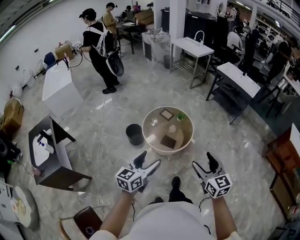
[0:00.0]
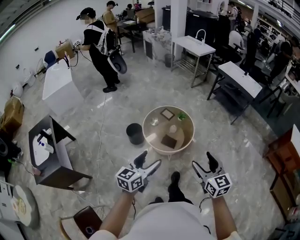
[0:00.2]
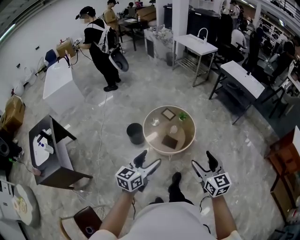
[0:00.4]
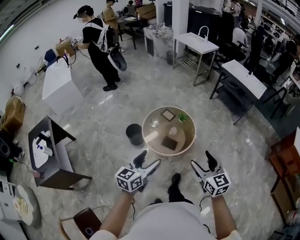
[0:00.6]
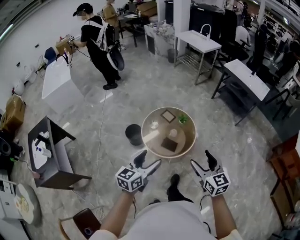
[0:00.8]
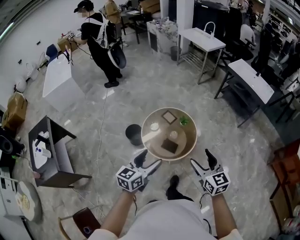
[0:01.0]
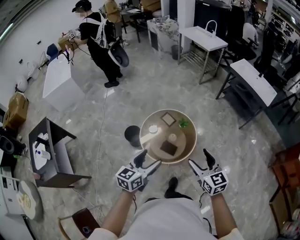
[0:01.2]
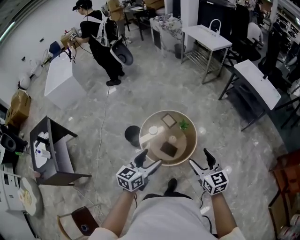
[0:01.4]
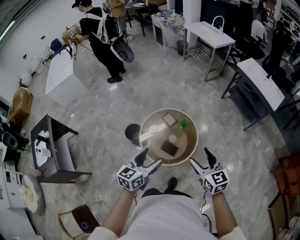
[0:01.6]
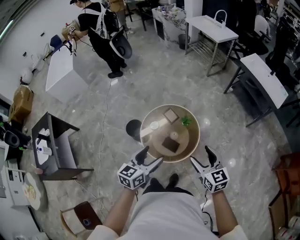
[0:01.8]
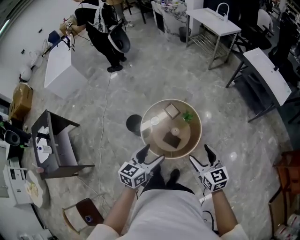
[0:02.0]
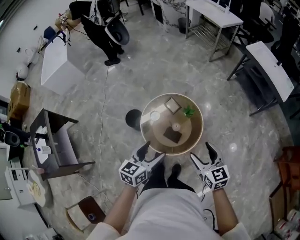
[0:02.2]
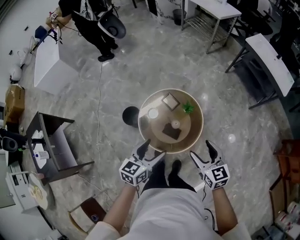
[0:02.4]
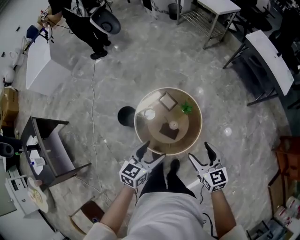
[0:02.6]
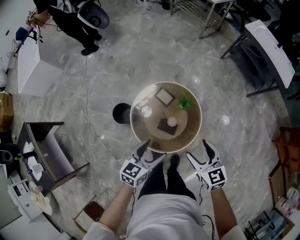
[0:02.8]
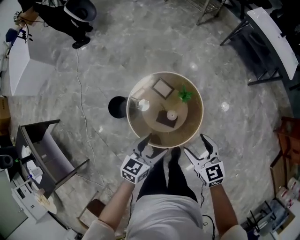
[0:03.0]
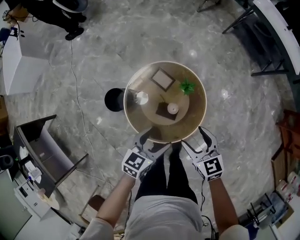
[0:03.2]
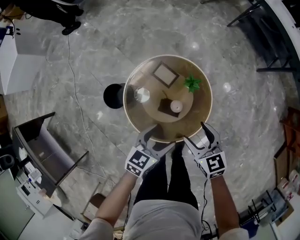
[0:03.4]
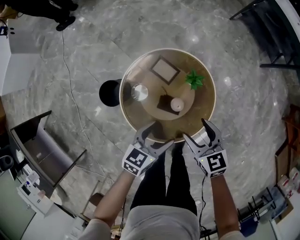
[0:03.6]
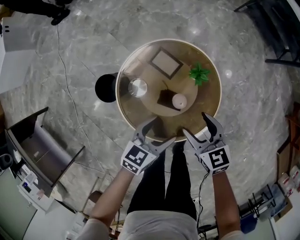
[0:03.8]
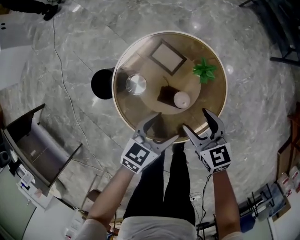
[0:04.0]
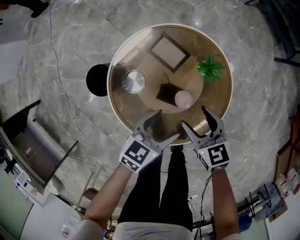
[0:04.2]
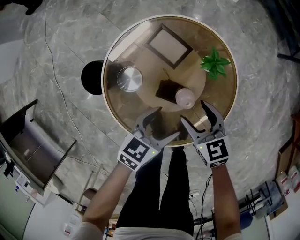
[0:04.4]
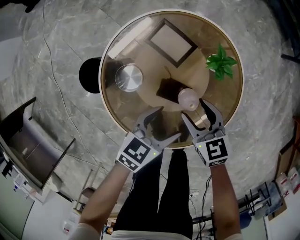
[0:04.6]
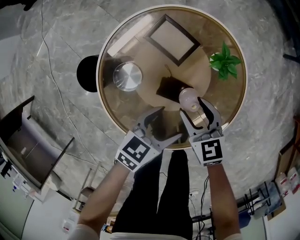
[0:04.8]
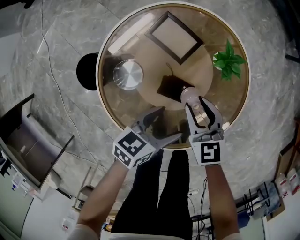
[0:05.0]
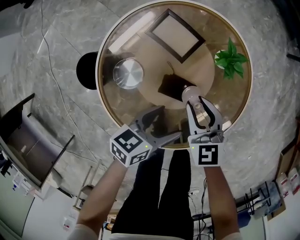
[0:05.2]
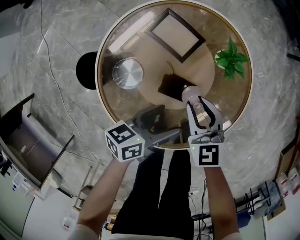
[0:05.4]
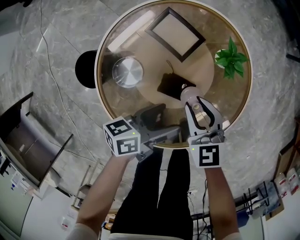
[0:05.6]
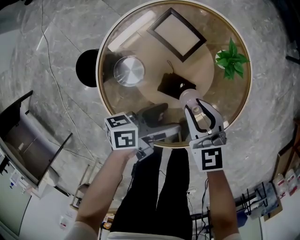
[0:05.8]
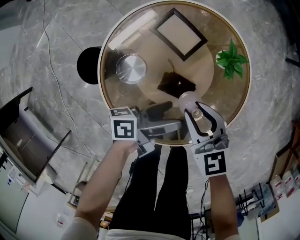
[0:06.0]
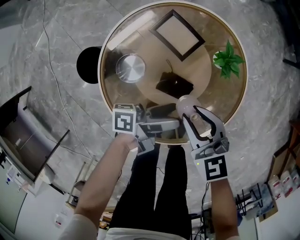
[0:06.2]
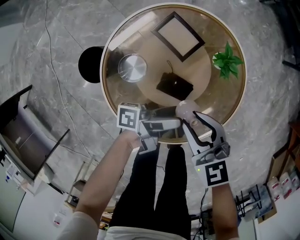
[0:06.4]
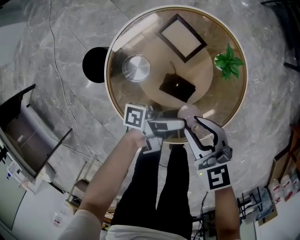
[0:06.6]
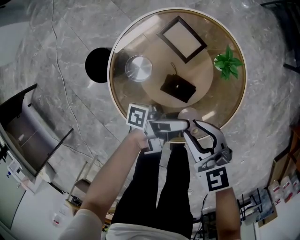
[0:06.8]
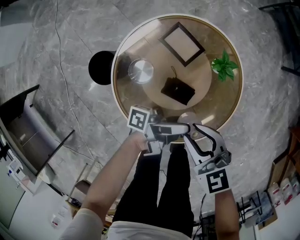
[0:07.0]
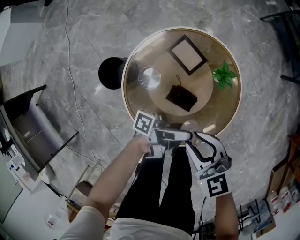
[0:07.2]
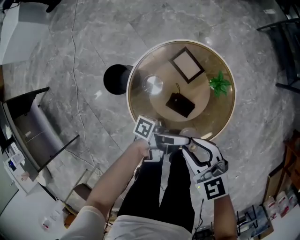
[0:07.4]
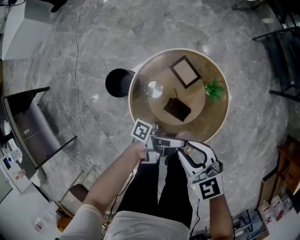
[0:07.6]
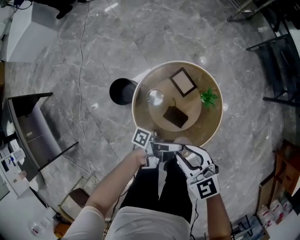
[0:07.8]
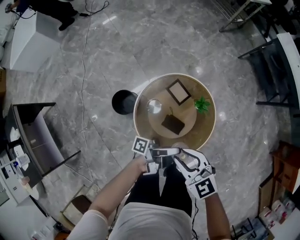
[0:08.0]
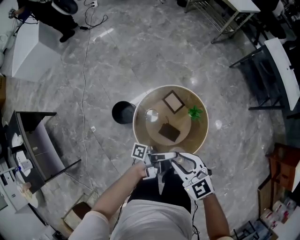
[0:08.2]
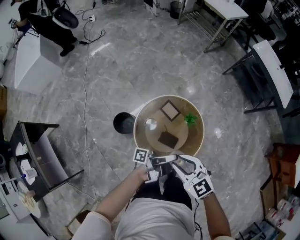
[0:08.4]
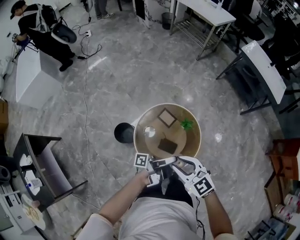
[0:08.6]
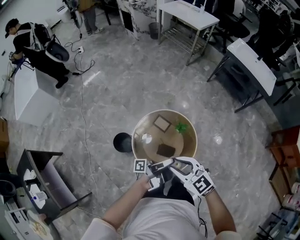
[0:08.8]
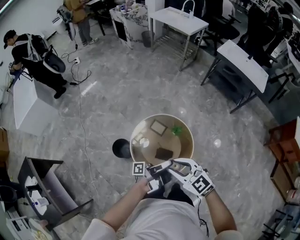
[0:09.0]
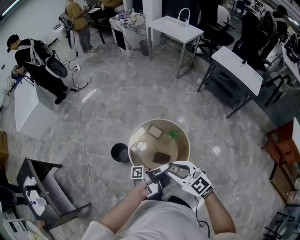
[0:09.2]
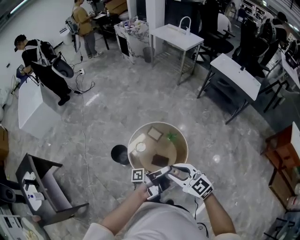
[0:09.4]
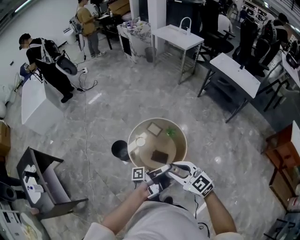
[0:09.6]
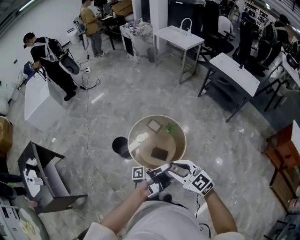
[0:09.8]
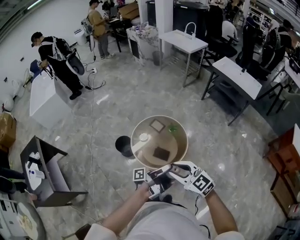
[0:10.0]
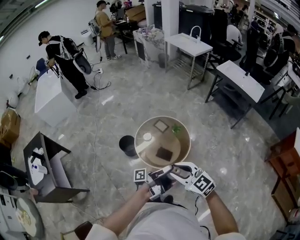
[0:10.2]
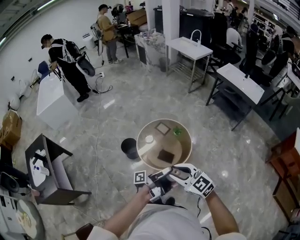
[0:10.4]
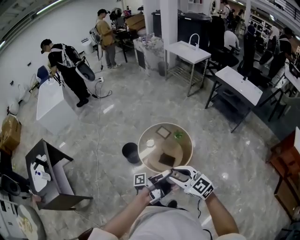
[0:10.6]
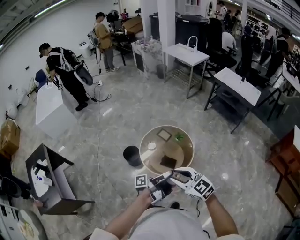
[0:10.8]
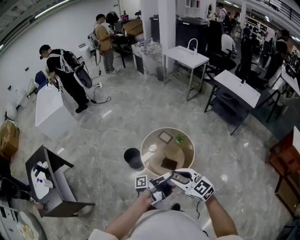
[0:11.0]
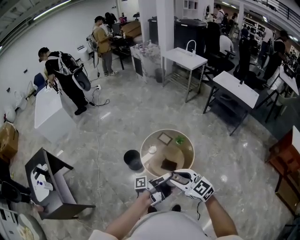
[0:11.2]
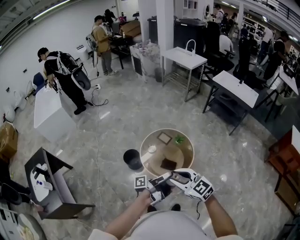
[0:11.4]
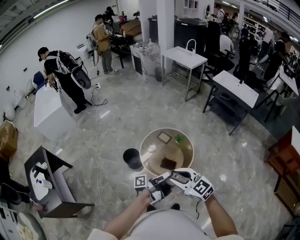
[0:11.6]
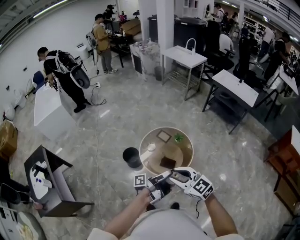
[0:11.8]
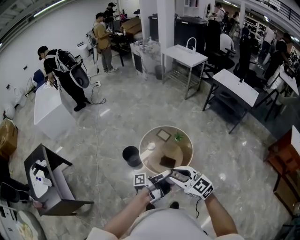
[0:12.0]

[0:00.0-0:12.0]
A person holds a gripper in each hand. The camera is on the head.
0:00.0 to 0:01.6: Both grippers travel together forward, about 30 cm.
0:01.6 to 0:03.0: The grippers both shift downward and forward by some 25 cm. The left gripper swivels some 20 degrees.
0:03.0 to 0:04.4: Both grippers travel together downward, approximately 35 cm.
0:04.4 to 0:06.0: The right gripper closes its fingers; the left gripper rolls counterclockwise, seen from behind, by roughly 50 degrees.
0:06.0 to 0:07.6: The two grippers go approximately 20 cm upward. The left gripper tips its fingers upward by approximately 30 degrees.
0:07.6 to 0:09.0: Both grippers move upward, about 30 cm.
0:09.0 to 0:10.4: Both grippers move backward, roughly 30 cm.
0:10.4 to 0:12.0: Both grippers move to the left, some 5 cm.

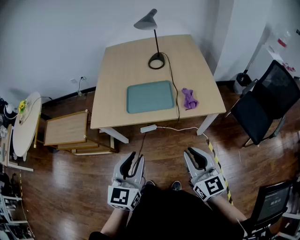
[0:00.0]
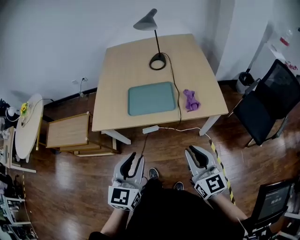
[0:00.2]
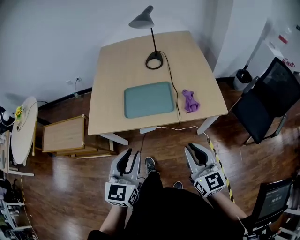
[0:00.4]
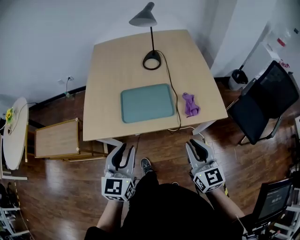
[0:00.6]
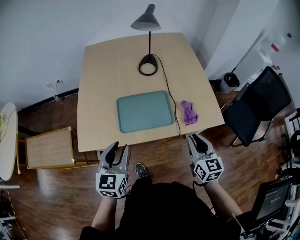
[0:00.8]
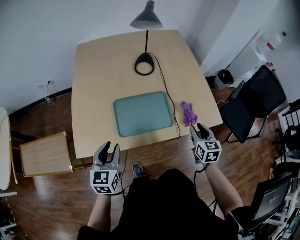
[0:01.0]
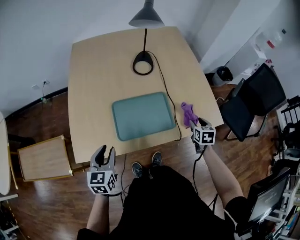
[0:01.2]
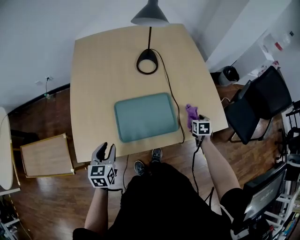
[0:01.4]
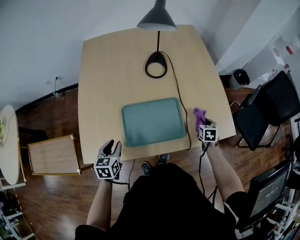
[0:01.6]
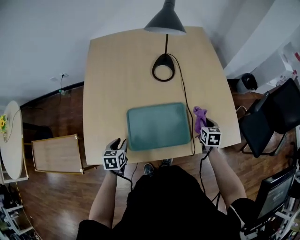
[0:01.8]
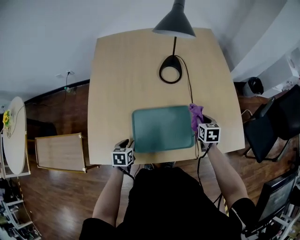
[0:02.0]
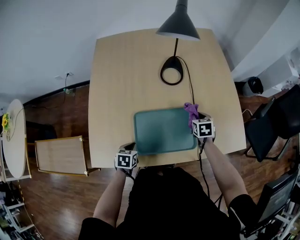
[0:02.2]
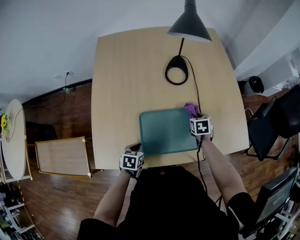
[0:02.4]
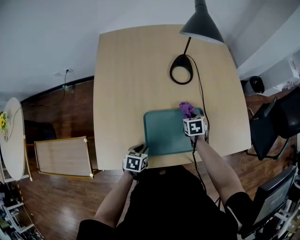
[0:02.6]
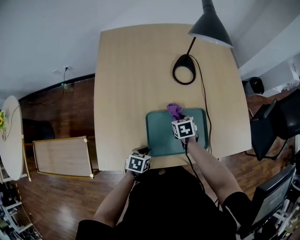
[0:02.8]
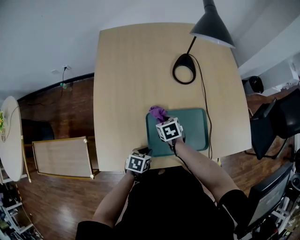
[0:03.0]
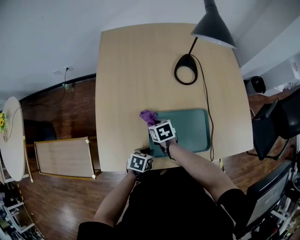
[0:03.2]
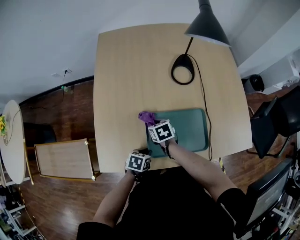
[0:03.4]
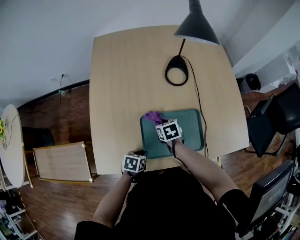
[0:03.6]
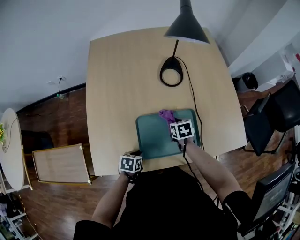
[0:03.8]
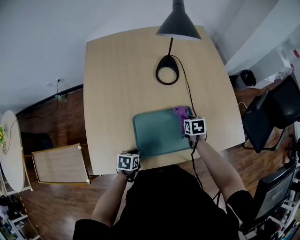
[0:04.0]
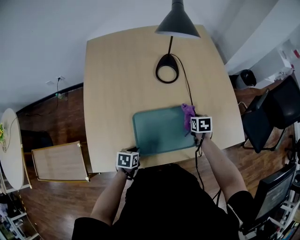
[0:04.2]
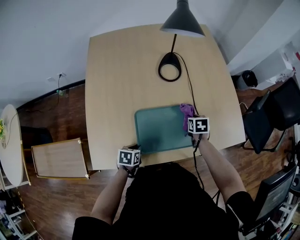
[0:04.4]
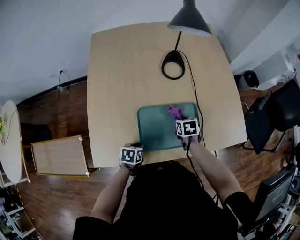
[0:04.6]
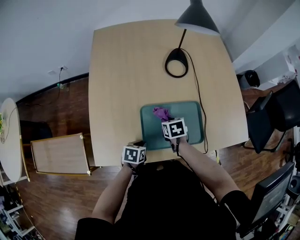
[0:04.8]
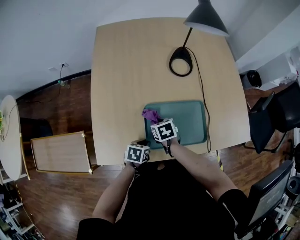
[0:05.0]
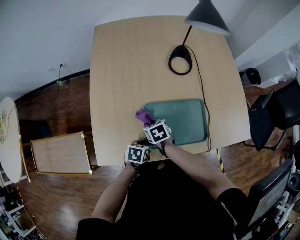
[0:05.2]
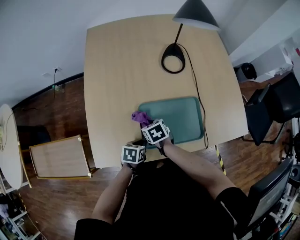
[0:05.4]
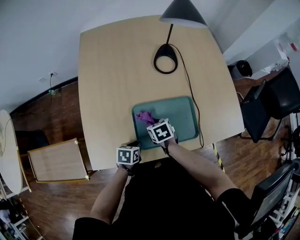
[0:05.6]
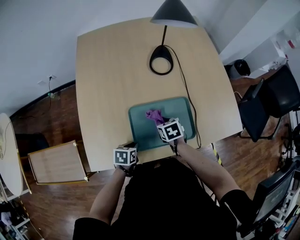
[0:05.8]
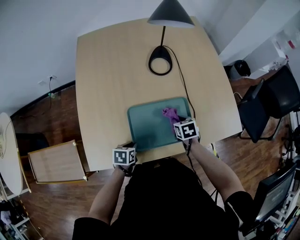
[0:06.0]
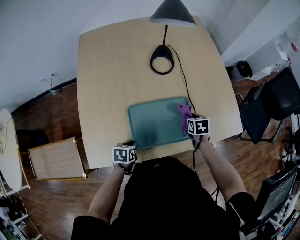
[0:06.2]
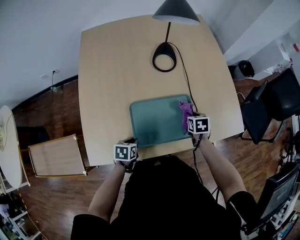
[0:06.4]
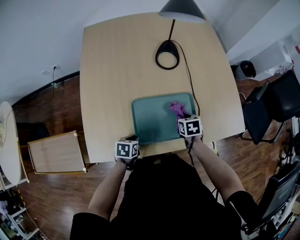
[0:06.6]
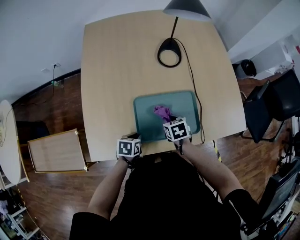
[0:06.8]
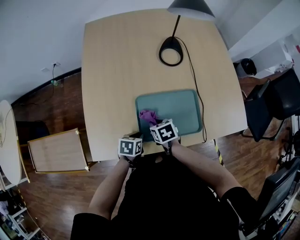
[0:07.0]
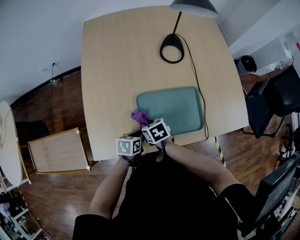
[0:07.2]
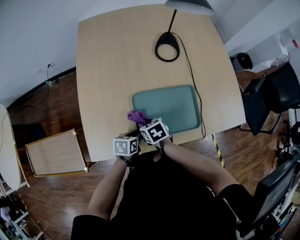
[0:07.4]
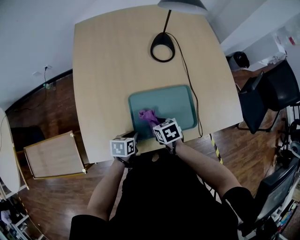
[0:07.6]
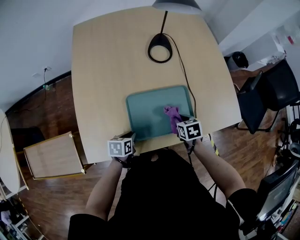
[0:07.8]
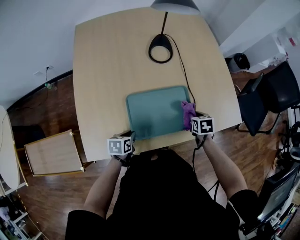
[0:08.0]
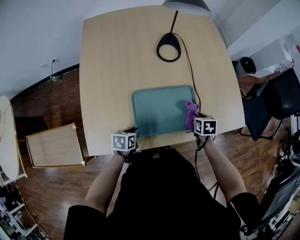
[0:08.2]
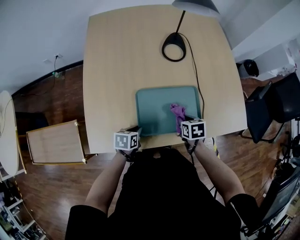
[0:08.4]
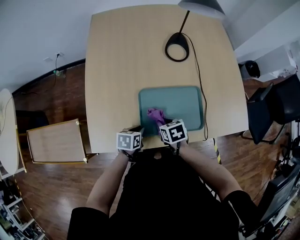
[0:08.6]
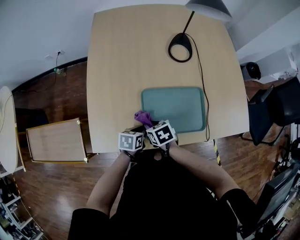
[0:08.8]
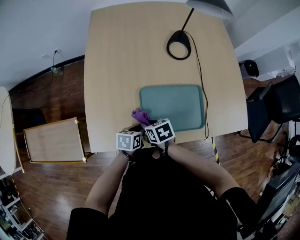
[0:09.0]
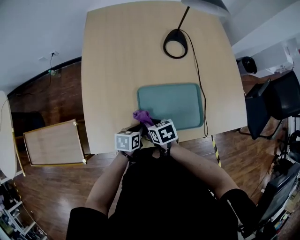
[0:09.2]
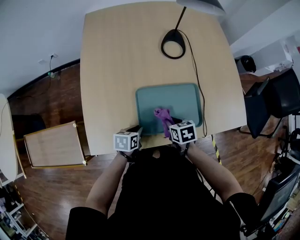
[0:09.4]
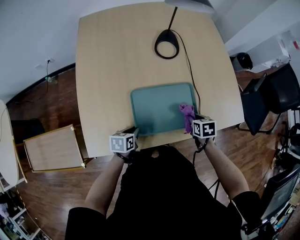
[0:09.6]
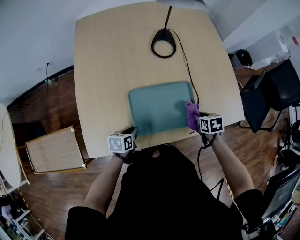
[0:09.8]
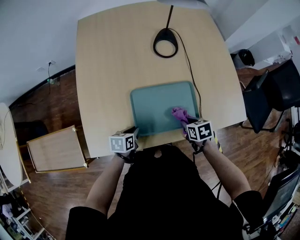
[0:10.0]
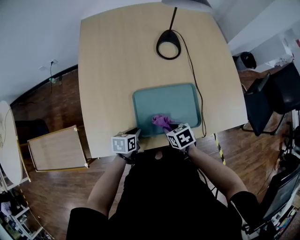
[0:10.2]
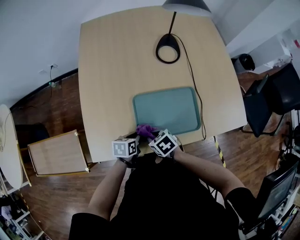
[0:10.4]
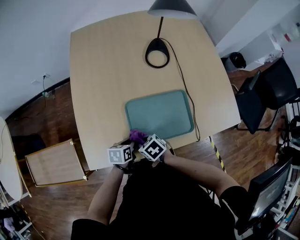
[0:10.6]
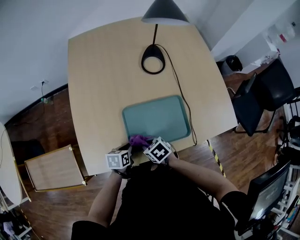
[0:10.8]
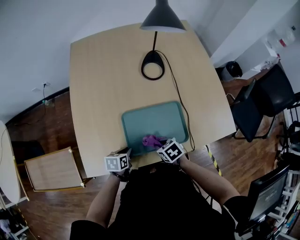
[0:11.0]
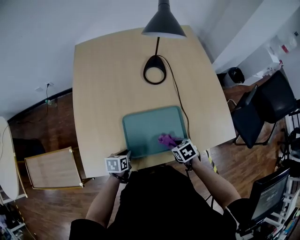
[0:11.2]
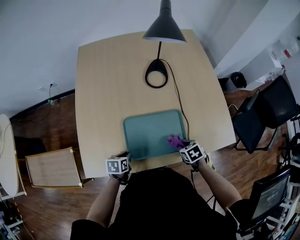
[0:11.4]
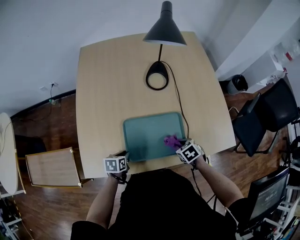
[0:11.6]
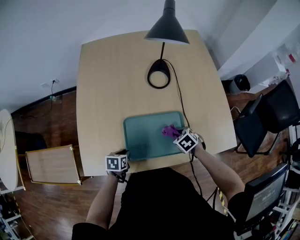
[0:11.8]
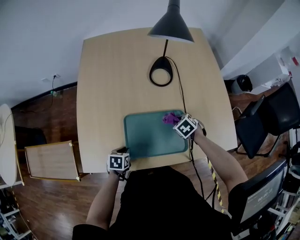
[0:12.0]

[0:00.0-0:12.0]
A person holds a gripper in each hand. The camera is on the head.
0:00.0 to 0:01.6: The right gripper goes about 50 cm forward and downward, tips its fingers downward by roughly 50 degrees, and opens and closes again; the left gripper is displaced forward, downward and to the left by some 40 cm, and swivels approximately 30 degrees.
0:01.6 to 0:03.0: The right gripper moves to the left, approximately 40 cm, and swivels about 30 degrees. Meanwhile the left gripper heads downward, covering about 10 cm, and turns by some 30 degrees.
0:03.0 to 0:04.4: The right gripper travels to the right by approximately 25 cm, and turns by some 20 degrees.
0:04.4 to 0:06.0: The right gripper heads backward, covering some 5 cm, and travels to the left and back again, approximately 25 cm each way.
0:06.0 to 0:07.6: The right gripper swings left and right, approximately 30 cm each way, with 2 reversals.
0:10.4 to 0:12.0: The right gripper goes about 25 cm to the right and forward, and turns by roughly 30 degrees.
